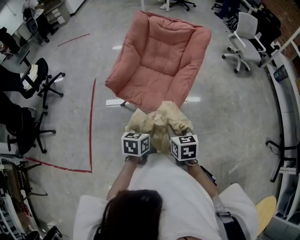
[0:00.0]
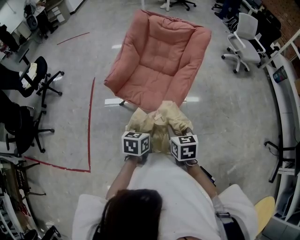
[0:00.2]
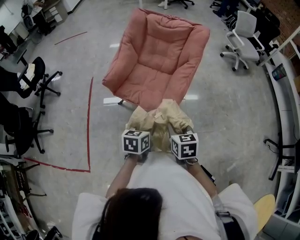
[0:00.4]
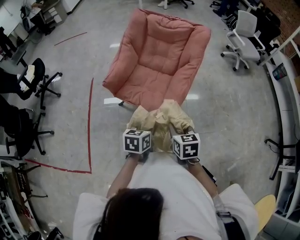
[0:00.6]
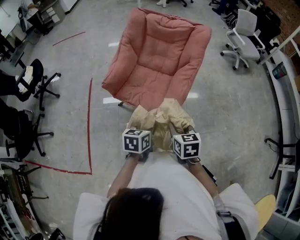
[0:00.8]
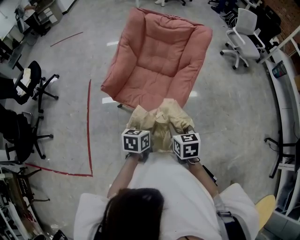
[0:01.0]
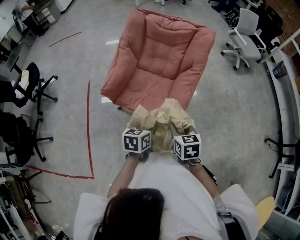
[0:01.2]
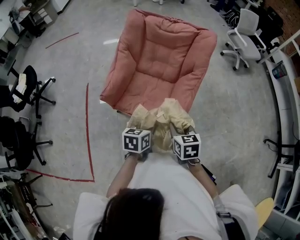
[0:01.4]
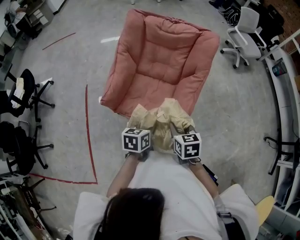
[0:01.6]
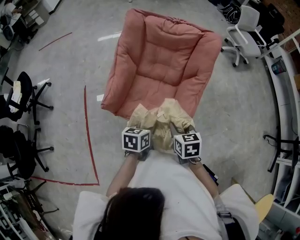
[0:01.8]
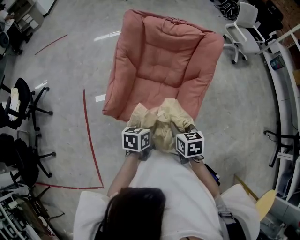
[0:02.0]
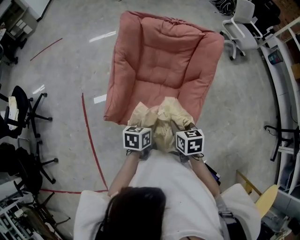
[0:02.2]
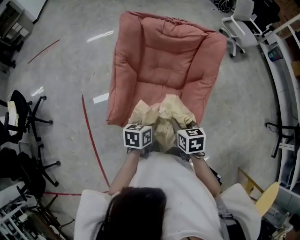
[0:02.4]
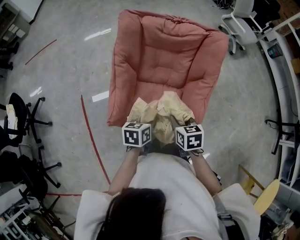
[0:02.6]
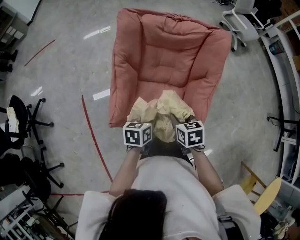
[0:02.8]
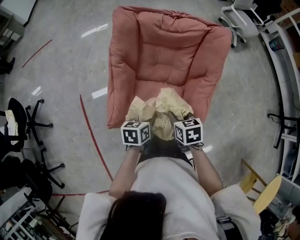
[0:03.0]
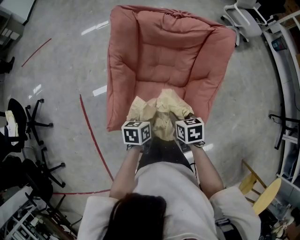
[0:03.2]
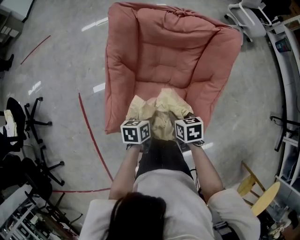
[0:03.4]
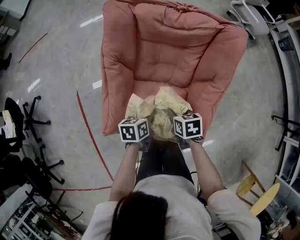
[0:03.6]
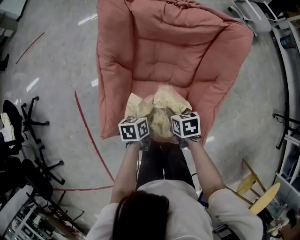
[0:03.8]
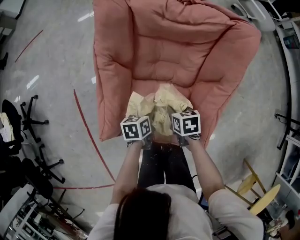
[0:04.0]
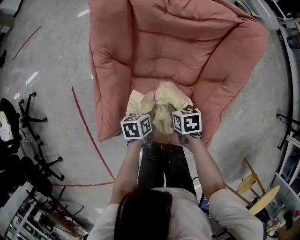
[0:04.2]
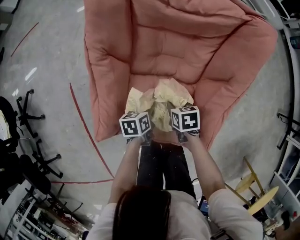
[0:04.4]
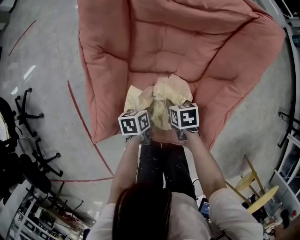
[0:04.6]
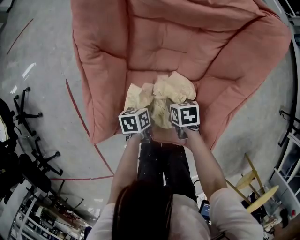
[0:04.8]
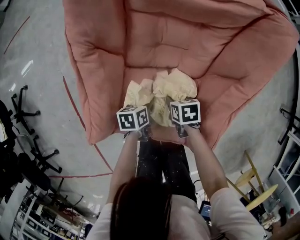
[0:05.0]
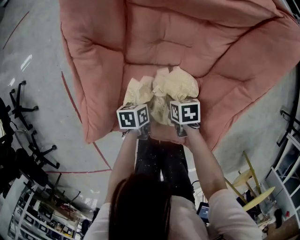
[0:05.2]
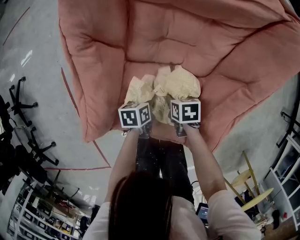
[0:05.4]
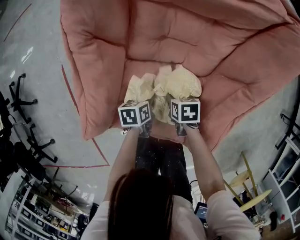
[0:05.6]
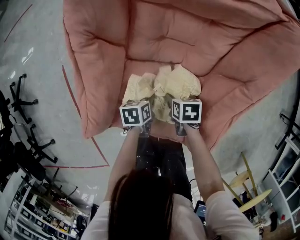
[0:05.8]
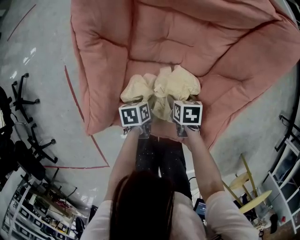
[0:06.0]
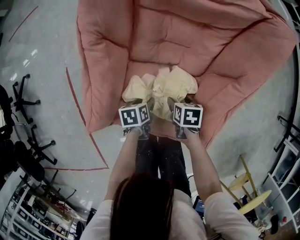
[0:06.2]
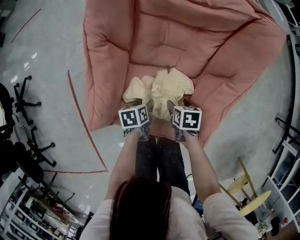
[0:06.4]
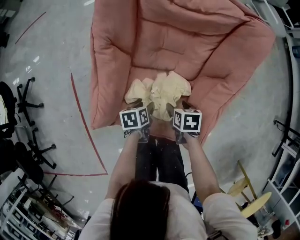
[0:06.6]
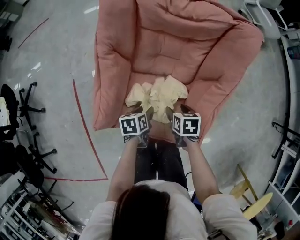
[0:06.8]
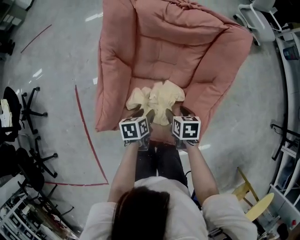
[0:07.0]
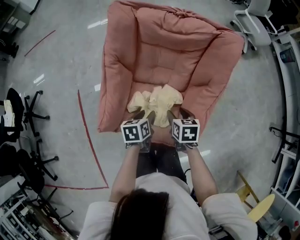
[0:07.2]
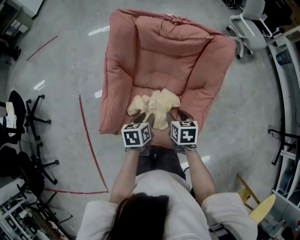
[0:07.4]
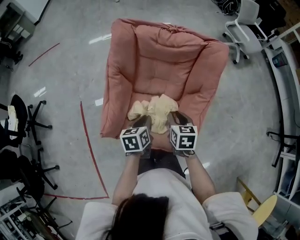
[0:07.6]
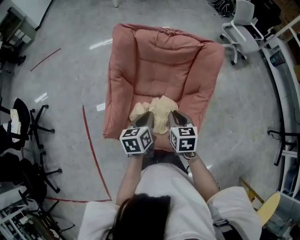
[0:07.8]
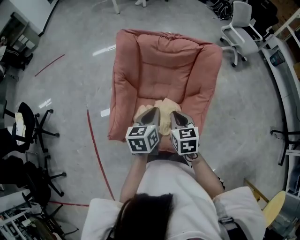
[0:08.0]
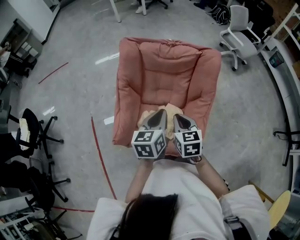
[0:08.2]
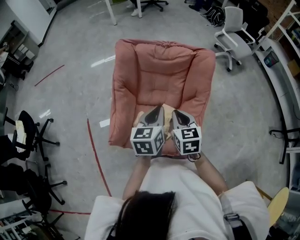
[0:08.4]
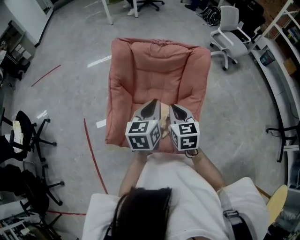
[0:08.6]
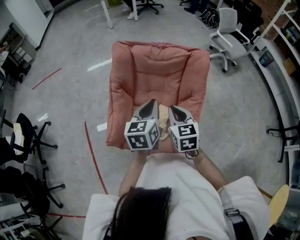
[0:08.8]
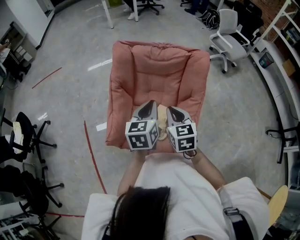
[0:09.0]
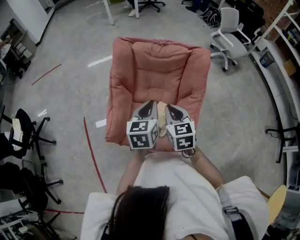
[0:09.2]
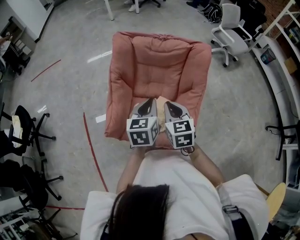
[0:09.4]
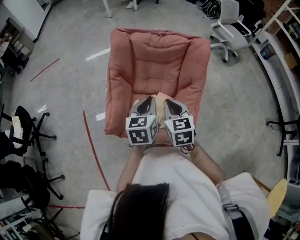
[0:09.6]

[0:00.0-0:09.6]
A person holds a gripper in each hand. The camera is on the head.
0:00.0 to 0:01.6: Both grippers move forward, some 20 cm.
0:01.6 to 0:03.2: The grippers both shift forward, to the left and downward by approximately 25 cm.
0:03.2 to 0:04.8: The two grippers go roughly 25 cm downward.
0:04.8 to 0:06.4: The left gripper opens its fingers. The right gripper ends up approximately 5 cm from where it was, and opens.
0:06.4 to 0:08.0: The two grippers go about 35 cm upward. The right gripper points its fingers about 30 degrees further upward, and closes its fingers. The left gripper points its fingers some 30 degrees further upward, and closes.
0:08.0 to 0:09.6: The right gripper shifts roughly 5 cm upward.

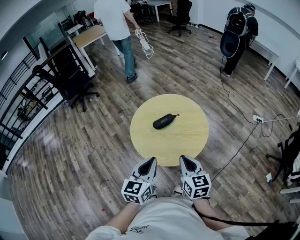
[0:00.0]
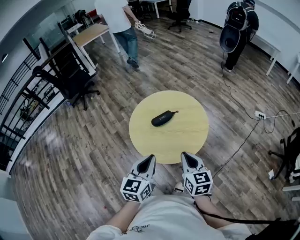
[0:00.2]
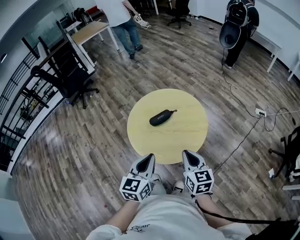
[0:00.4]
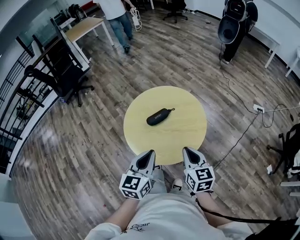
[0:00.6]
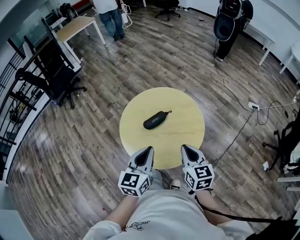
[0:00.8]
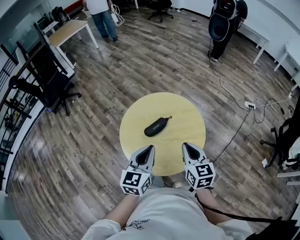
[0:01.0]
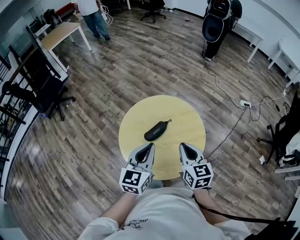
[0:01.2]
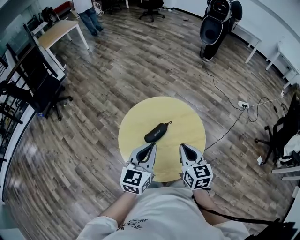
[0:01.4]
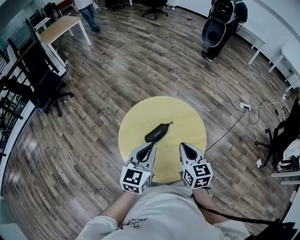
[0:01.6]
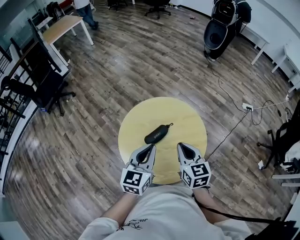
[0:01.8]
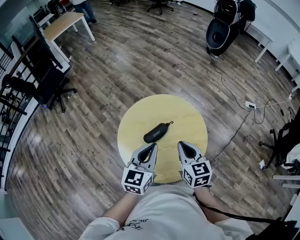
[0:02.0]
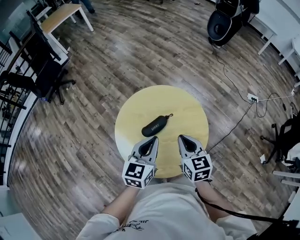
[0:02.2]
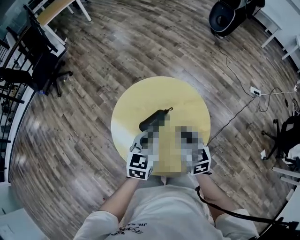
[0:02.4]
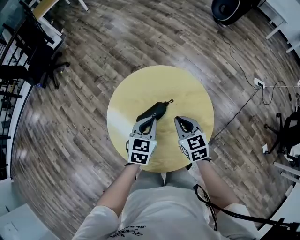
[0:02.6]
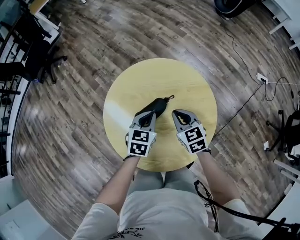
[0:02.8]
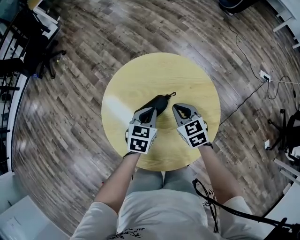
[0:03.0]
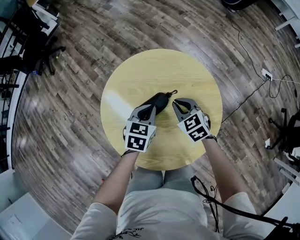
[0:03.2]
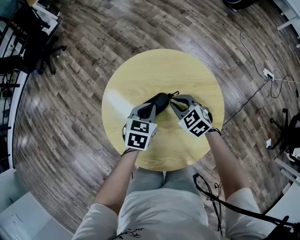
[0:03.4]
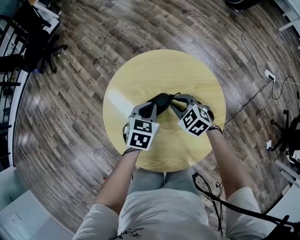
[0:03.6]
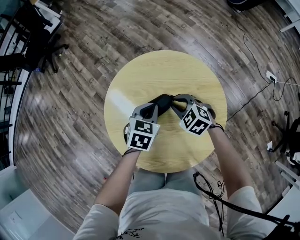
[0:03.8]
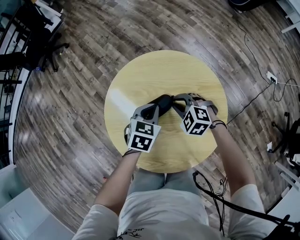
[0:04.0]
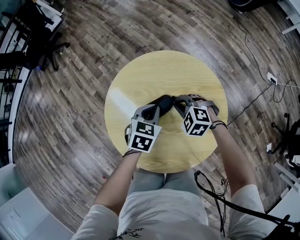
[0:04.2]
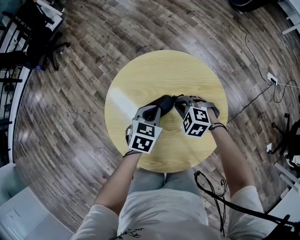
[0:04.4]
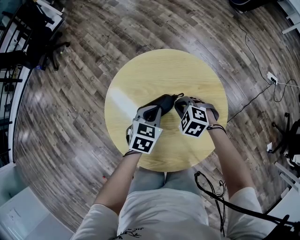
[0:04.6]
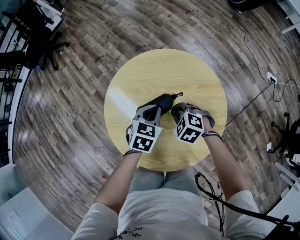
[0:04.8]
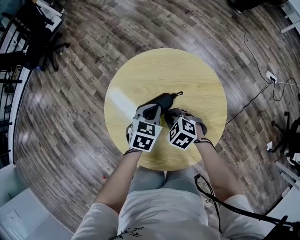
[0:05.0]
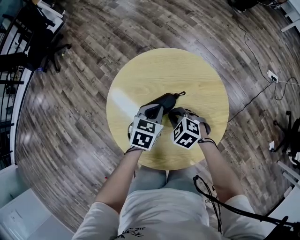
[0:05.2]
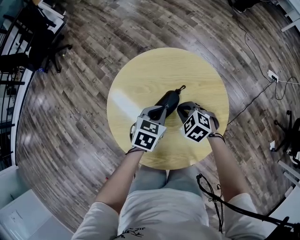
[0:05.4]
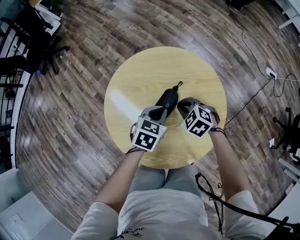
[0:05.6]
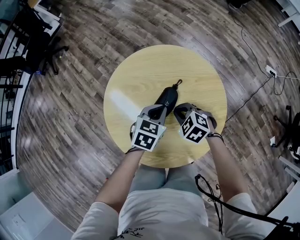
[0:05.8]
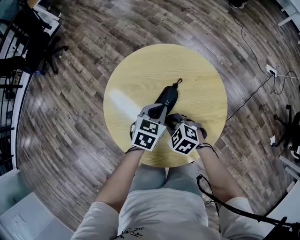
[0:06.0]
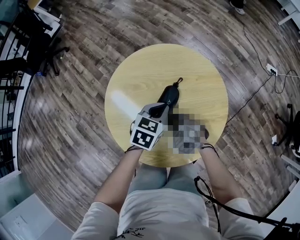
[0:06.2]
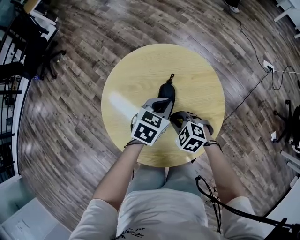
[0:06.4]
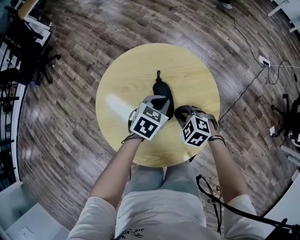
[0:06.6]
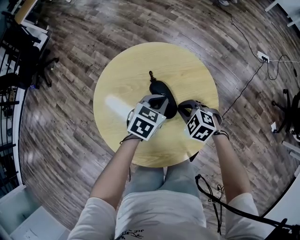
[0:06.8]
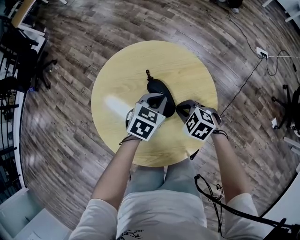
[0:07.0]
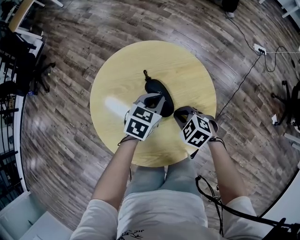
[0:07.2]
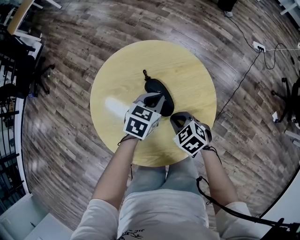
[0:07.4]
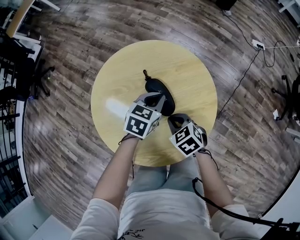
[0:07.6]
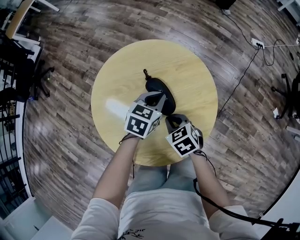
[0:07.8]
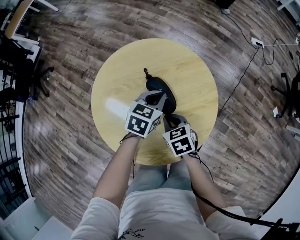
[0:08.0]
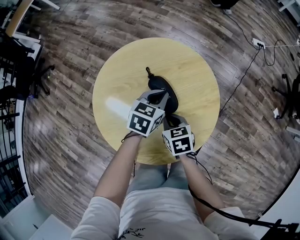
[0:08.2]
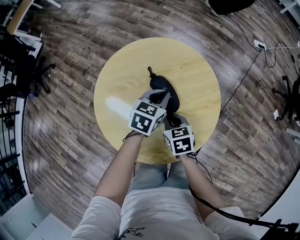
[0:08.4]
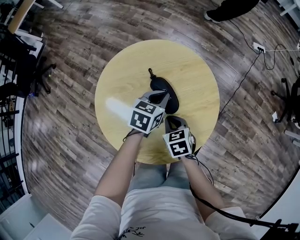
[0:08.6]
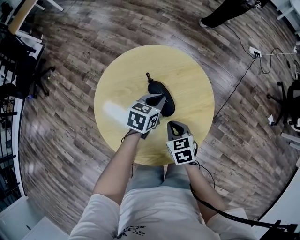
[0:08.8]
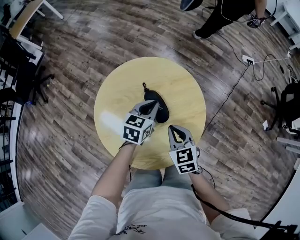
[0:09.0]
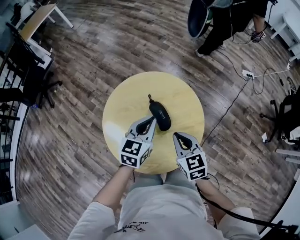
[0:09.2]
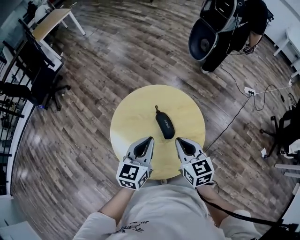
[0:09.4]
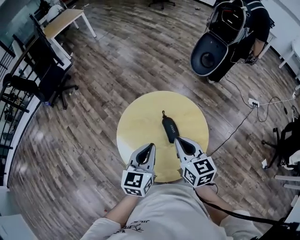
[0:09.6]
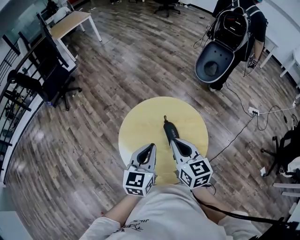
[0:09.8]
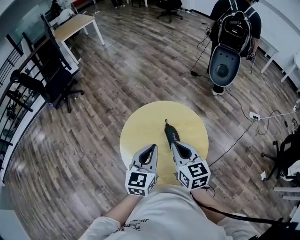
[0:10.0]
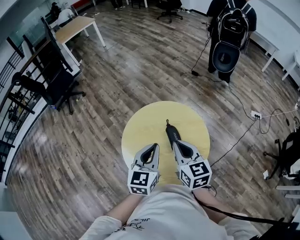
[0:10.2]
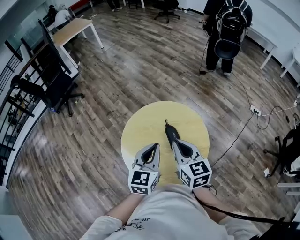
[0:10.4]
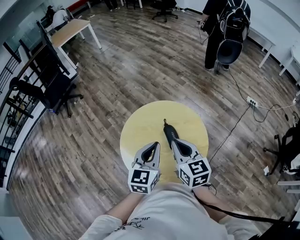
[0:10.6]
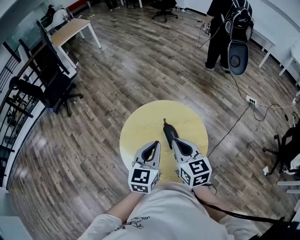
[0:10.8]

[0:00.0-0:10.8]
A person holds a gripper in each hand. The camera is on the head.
0:00.0 to 0:01.6: Both grippers travel together forward, some 25 cm.
0:01.6 to 0:03.0: The grippers both shift downward and forward by about 30 cm. The left gripper tilts its fingers approximately 30 degrees downward; the right gripper turns by about 30 degrees.
0:03.0 to 0:04.6: The right gripper moves about 5 cm, and rotates roughly 50 degrees.
0:04.6 to 0:06.2: The right gripper is displaced backward by about 10 cm.
0:06.2 to 0:07.8: The grippers both shift to the right by about 5 cm. The right gripper changes its angle by some 40 degrees.
0:07.8 to 0:09.2: The grippers both shift upward by approximately 15 cm. The right gripper changes its angle by approximately 30 degrees. The left gripper rotates roughly 20 degrees.
0:09.2 to 0:10.8: The right gripper is displaced upward by some 15 cm, while the left gripper heads upward, backward and to the left, covering about 15 cm, and changes its angle by some 20 degrees.

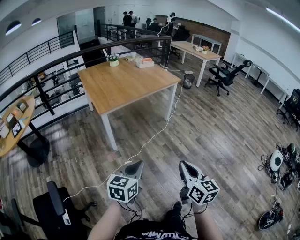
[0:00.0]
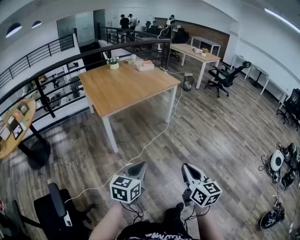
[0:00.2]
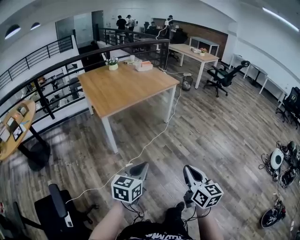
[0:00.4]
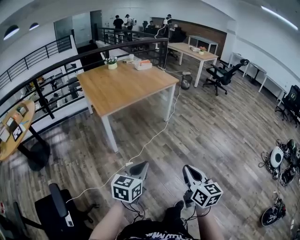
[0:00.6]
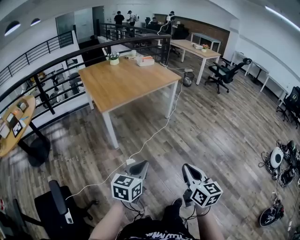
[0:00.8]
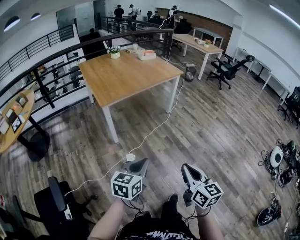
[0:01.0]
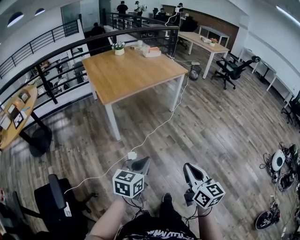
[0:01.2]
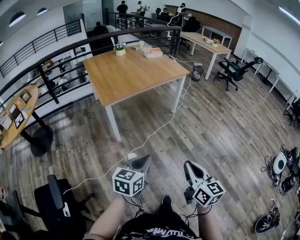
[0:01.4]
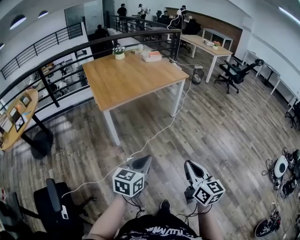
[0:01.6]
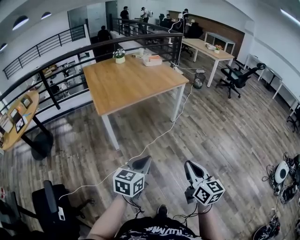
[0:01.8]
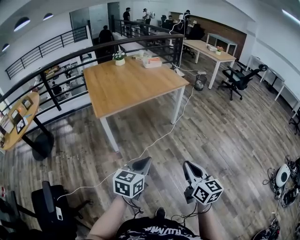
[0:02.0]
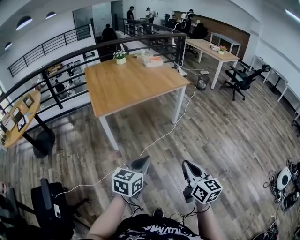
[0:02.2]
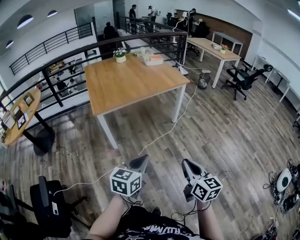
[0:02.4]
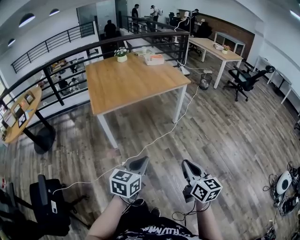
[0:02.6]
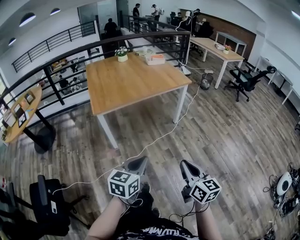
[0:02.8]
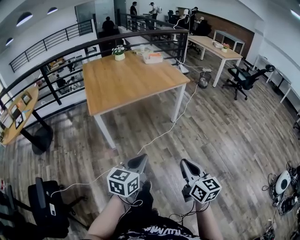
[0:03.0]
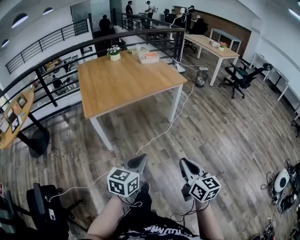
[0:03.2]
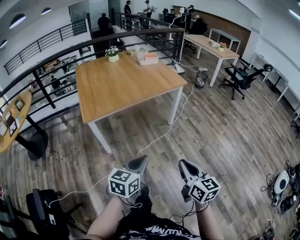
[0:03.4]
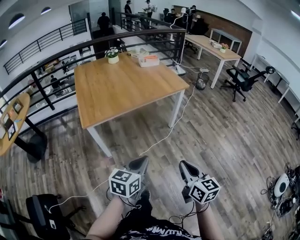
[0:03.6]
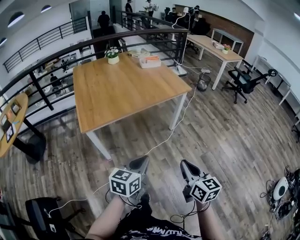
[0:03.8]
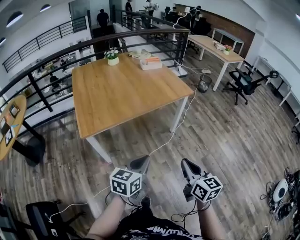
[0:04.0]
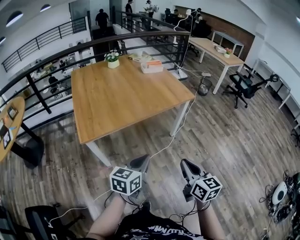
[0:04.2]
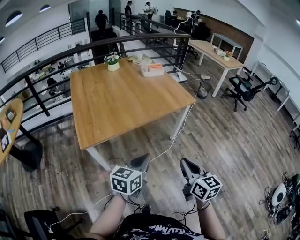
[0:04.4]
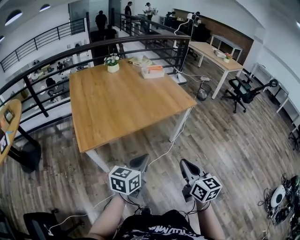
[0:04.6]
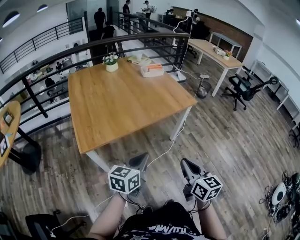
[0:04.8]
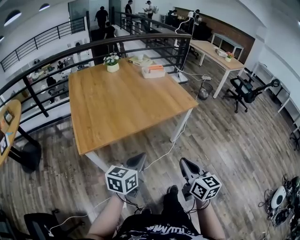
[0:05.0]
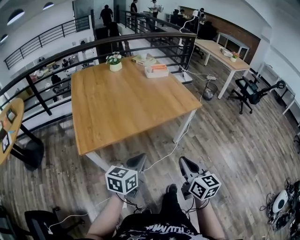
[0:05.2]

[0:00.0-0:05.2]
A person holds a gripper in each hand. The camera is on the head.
0:00.0 to 0:01.8: Both grippers move forward and to the right, some 15 cm.
0:01.8 to 0:03.4: Both grippers travel together forward and to the right, about 20 cm.
0:03.4 to 0:05.2: The two grippers go some 35 cm forward.
